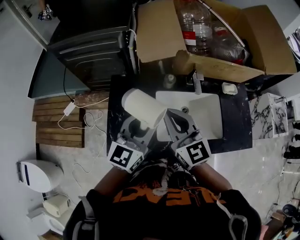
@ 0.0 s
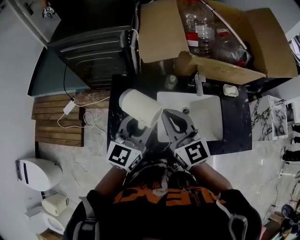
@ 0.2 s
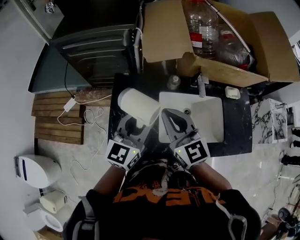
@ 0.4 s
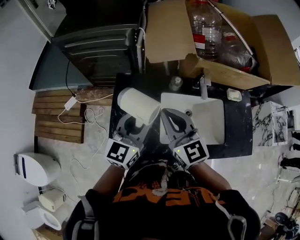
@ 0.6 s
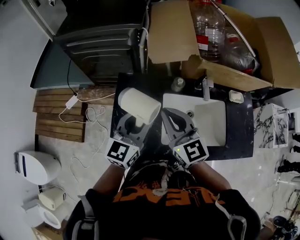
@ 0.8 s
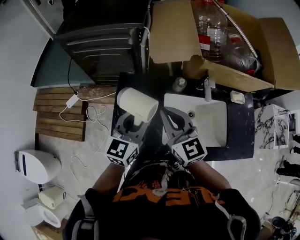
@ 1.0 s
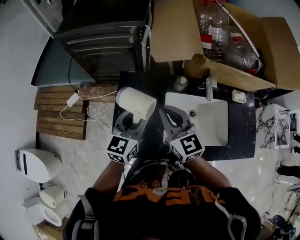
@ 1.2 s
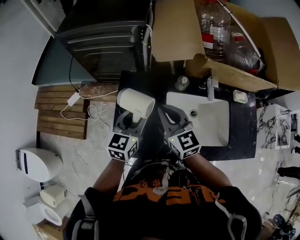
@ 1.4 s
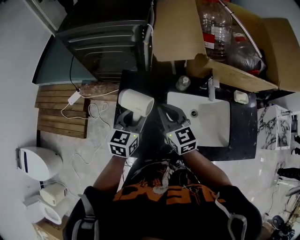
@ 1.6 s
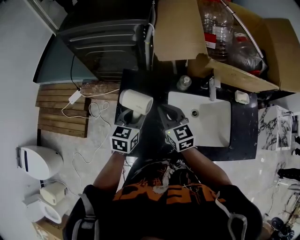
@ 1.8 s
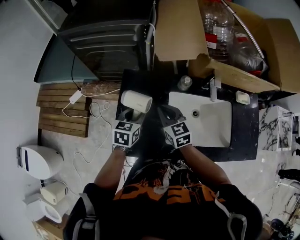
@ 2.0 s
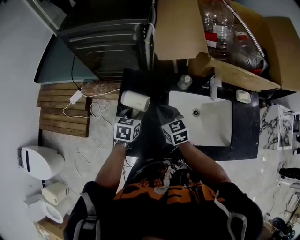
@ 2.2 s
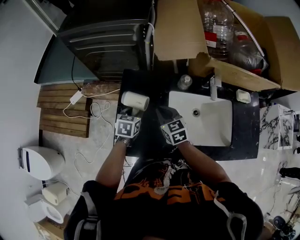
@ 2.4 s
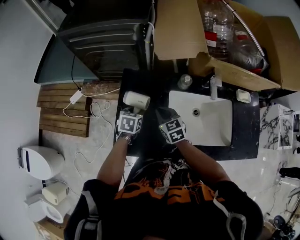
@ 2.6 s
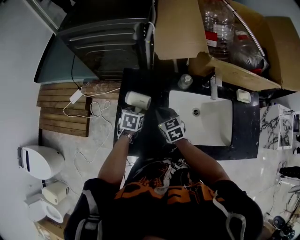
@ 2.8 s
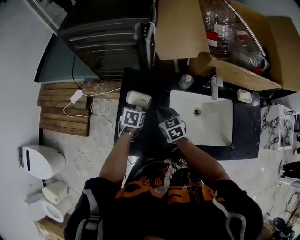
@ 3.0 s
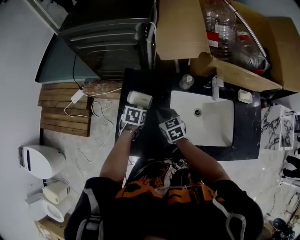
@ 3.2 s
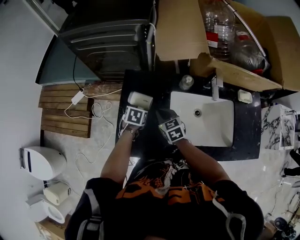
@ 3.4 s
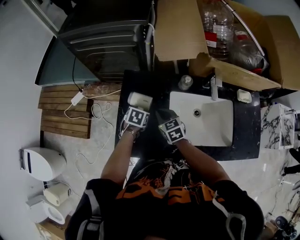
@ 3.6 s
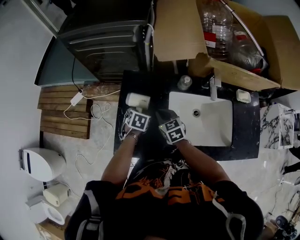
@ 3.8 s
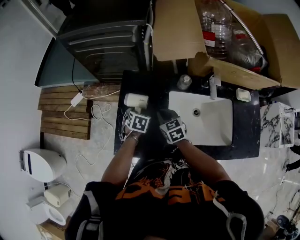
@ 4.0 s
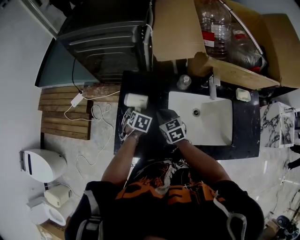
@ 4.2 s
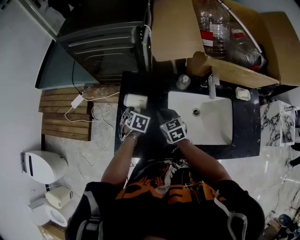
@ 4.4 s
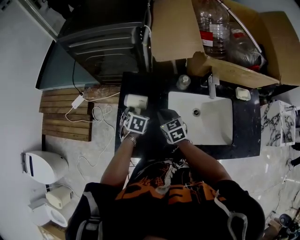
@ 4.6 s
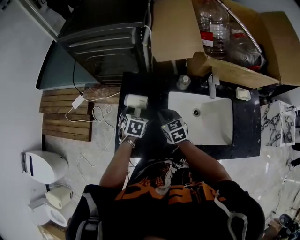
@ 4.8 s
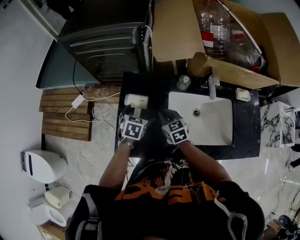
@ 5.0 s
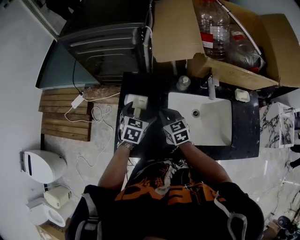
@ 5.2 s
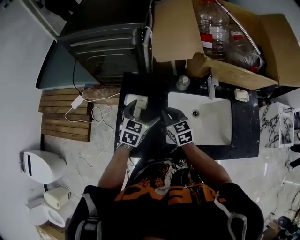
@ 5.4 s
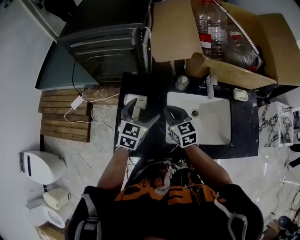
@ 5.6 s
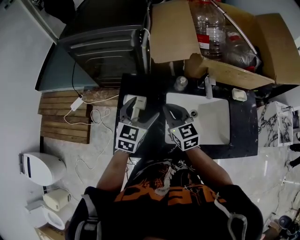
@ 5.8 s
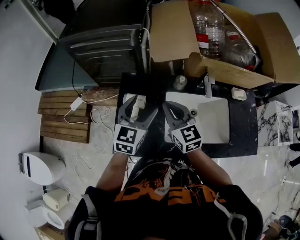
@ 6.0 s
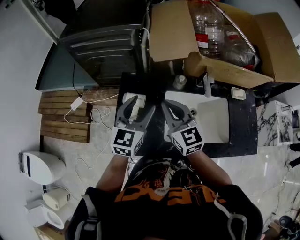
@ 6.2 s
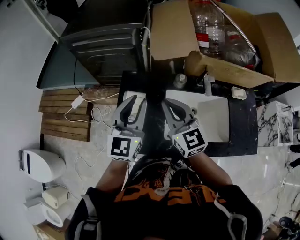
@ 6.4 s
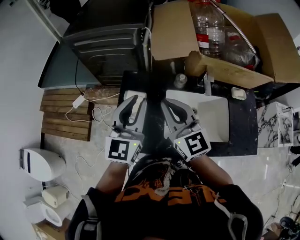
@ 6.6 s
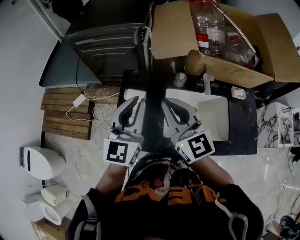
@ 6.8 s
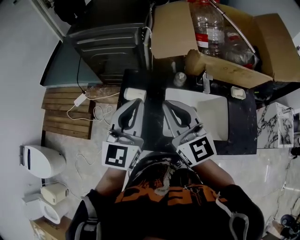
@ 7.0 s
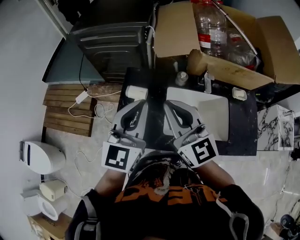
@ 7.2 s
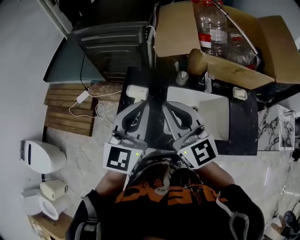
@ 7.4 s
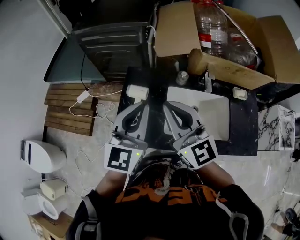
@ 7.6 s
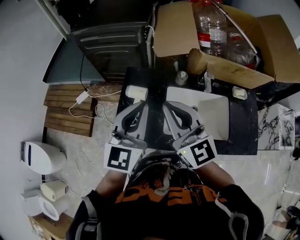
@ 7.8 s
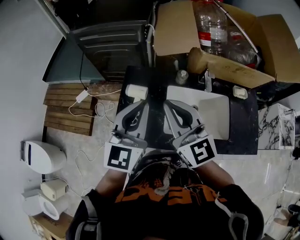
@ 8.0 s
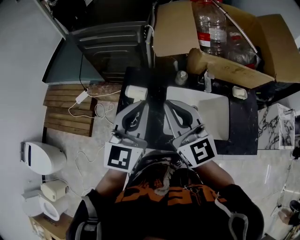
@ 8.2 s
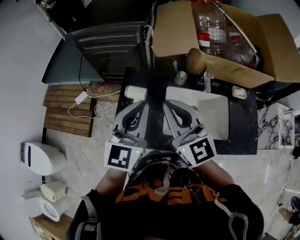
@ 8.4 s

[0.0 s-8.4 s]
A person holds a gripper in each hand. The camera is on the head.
0.0 to 1.4 s: Both grippers move downward, to the left and forward, about 10 cm.
1.4 to 2.8 s: Both grippers move downward, some 20 cm. The right gripper swivels roughly 20 degrees; the left gripper tilts its fingers about 40 degrees downward.
2.8 to 4.2 s: The left gripper opens up.
4.2 to 5.6 s: The left gripper heads upward, covering approximately 20 cm, and tilts its fingers about 40 degrees upward; the right gripper is displaced upward by some 10 cm.
5.6 to 7.0 s: Both grippers travel together upward and backward, some 25 cm. The left gripper rotates about 30 degrees, and closes its fingers. The right gripper rotates about 30 degrees.
7.0 to 8.4 s: The grippers make only small movements.

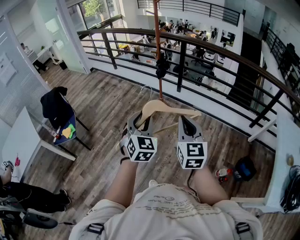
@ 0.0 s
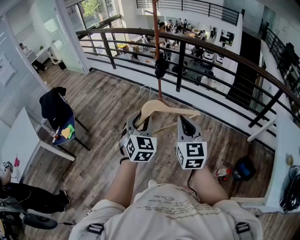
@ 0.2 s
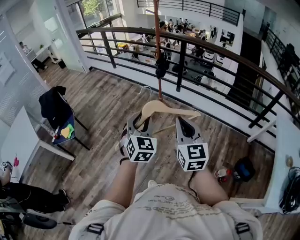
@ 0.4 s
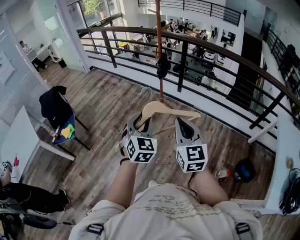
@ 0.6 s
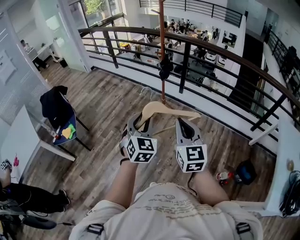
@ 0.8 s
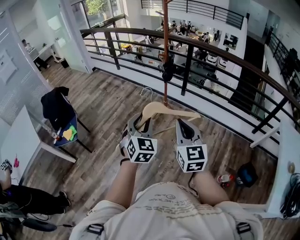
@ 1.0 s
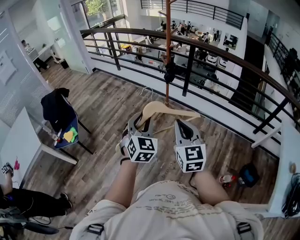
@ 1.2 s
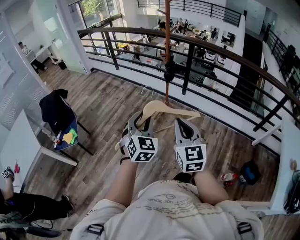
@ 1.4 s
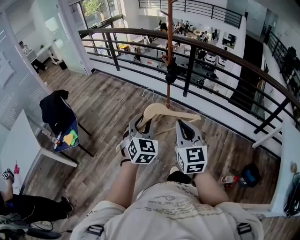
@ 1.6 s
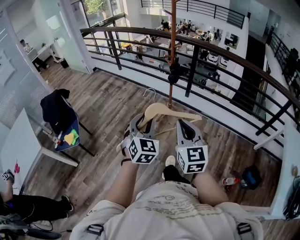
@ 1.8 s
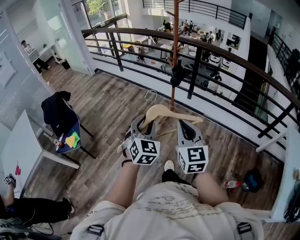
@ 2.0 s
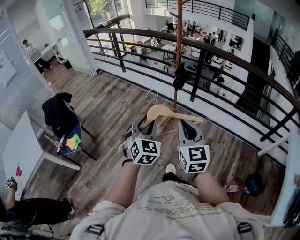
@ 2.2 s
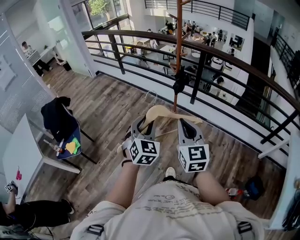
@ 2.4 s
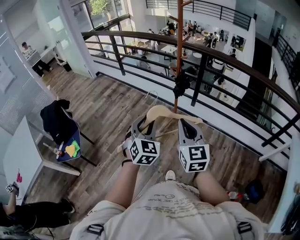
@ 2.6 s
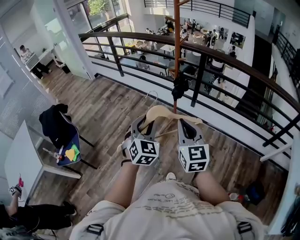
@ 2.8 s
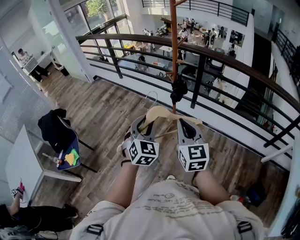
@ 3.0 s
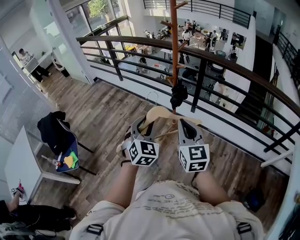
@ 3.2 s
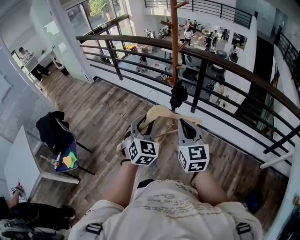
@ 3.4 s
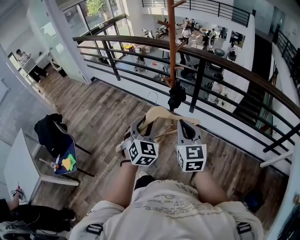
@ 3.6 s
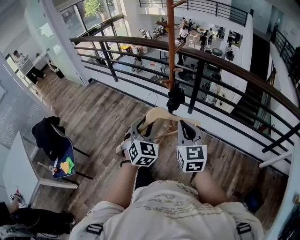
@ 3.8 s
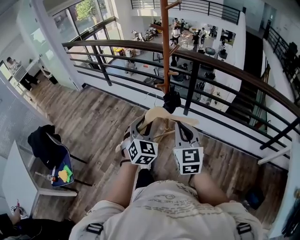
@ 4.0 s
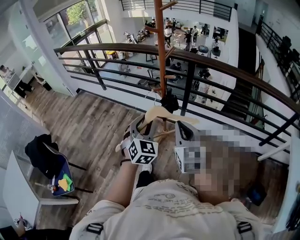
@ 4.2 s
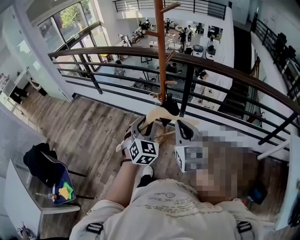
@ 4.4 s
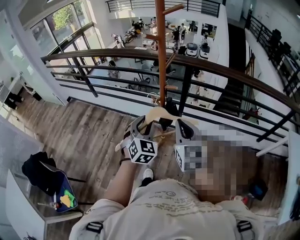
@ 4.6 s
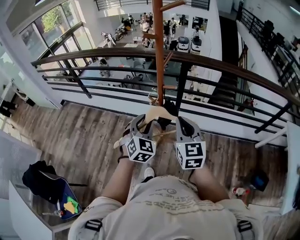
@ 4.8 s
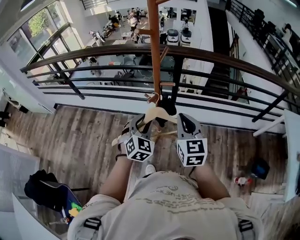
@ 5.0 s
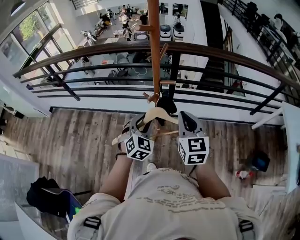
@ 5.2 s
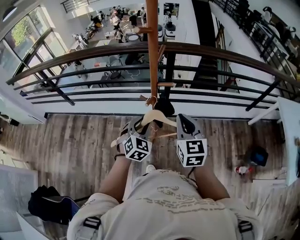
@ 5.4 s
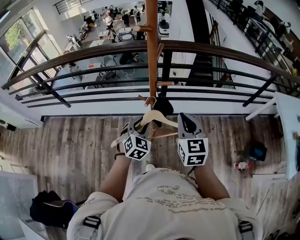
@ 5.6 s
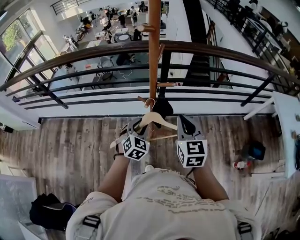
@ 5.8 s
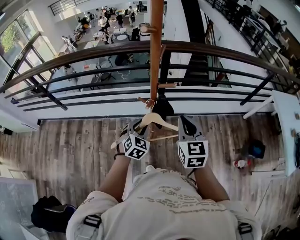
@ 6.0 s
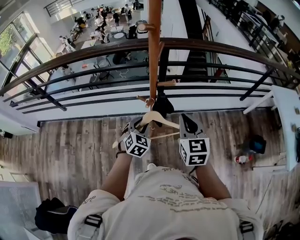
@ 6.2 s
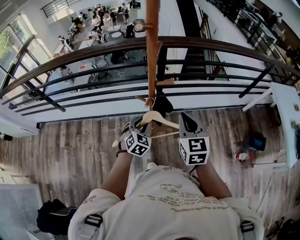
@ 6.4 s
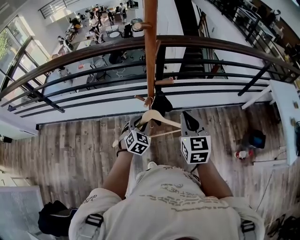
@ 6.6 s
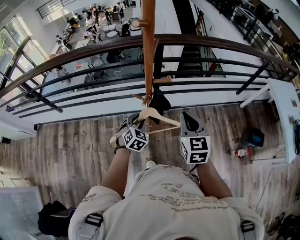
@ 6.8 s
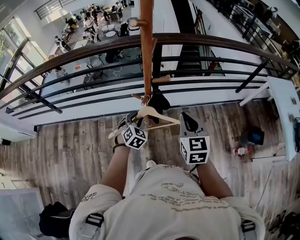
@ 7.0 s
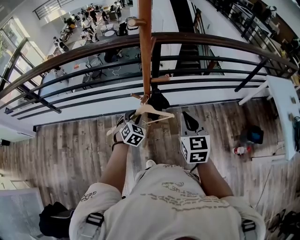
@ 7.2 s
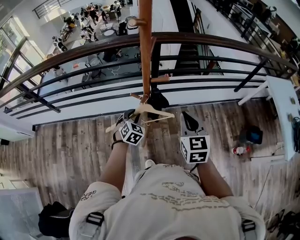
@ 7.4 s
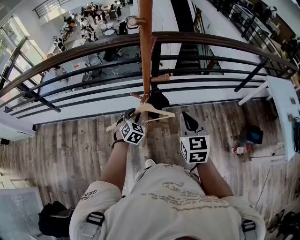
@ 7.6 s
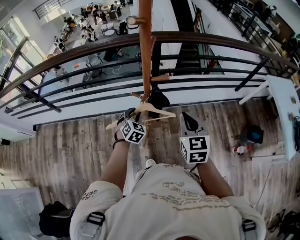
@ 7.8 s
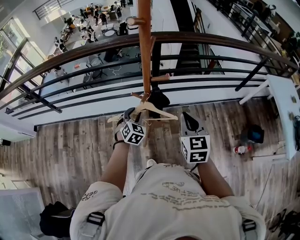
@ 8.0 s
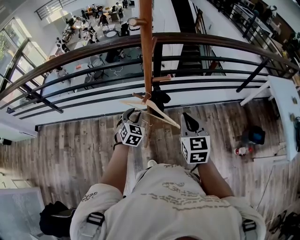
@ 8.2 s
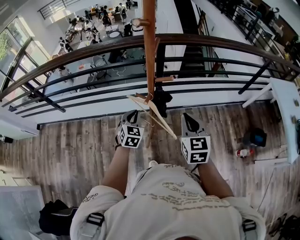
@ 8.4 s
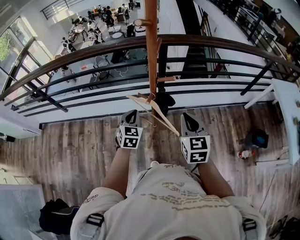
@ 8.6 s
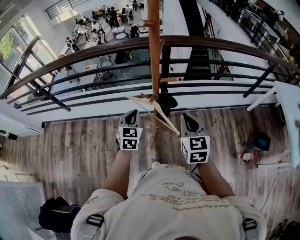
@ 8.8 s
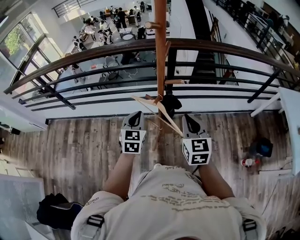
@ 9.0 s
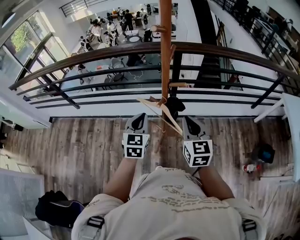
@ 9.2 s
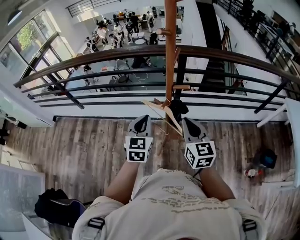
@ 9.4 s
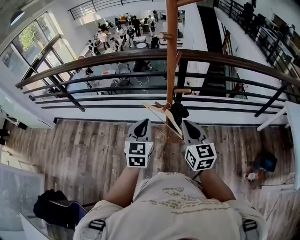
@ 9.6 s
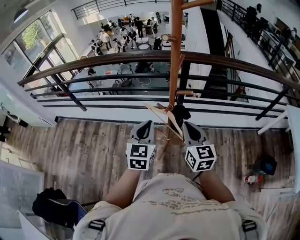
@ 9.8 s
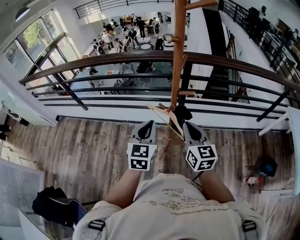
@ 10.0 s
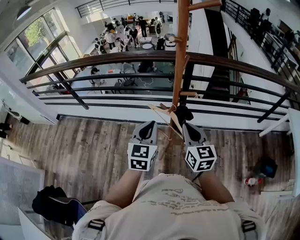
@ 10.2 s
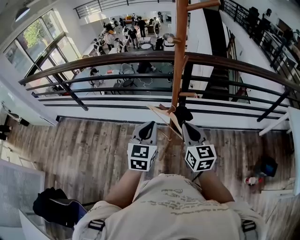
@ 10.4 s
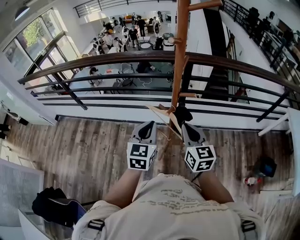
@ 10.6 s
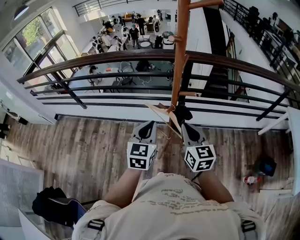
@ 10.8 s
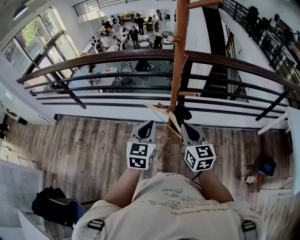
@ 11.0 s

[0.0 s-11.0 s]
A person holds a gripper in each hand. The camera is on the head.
0.0 to 1.6 s: The two grippers go some 15 cm to the left and forward.
1.6 to 3.2 s: Both grippers travel together forward, roughly 30 cm.
3.2 to 4.8 s: Both grippers move forward, approximately 25 cm. The left gripper swivels about 20 degrees, while the right gripper turns by roughly 20 degrees.
4.8 to 6.2 s: The left gripper moves downward and forward, about 15 cm, and turns by approximately 30 degrees. The right gripper is displaced downward and forward by some 10 cm, and changes its angle by roughly 20 degrees.
6.2 to 7.8 s: The left gripper is displaced forward by approximately 5 cm.
7.8 to 9.4 s: The right gripper heads to the left, covering roughly 5 cm, and changes its angle by some 20 degrees; the left gripper is displaced upward and backward by roughly 20 cm, rotates about 30 degrees, and closes up.
9.4 to 11.0 s: There are only small adjustments of the grippers.

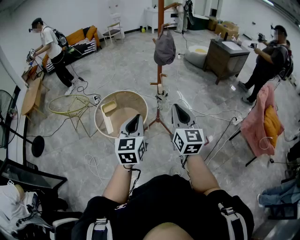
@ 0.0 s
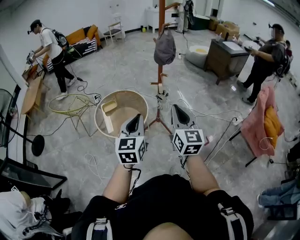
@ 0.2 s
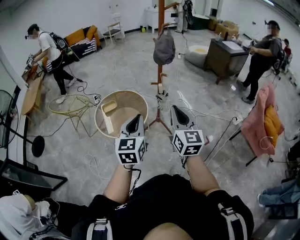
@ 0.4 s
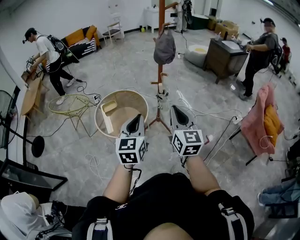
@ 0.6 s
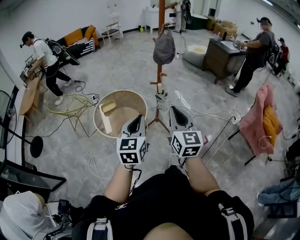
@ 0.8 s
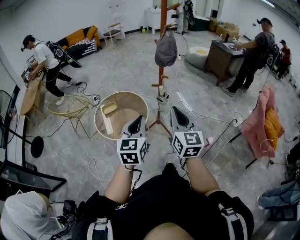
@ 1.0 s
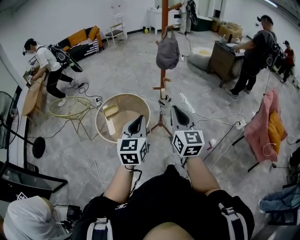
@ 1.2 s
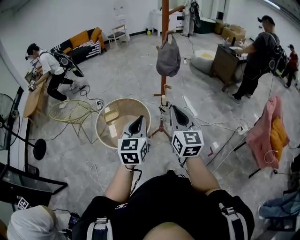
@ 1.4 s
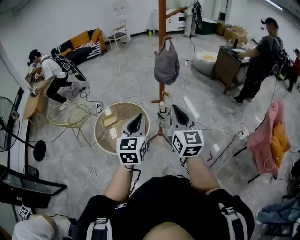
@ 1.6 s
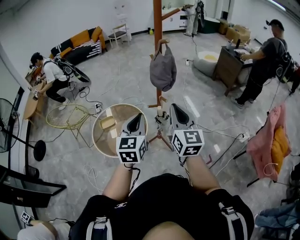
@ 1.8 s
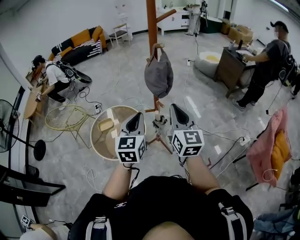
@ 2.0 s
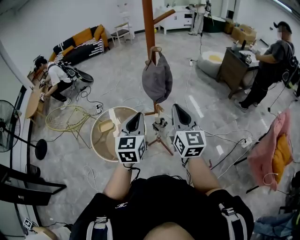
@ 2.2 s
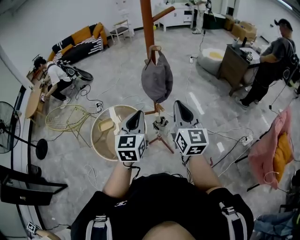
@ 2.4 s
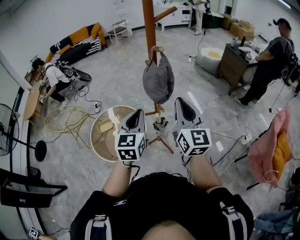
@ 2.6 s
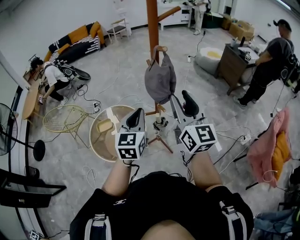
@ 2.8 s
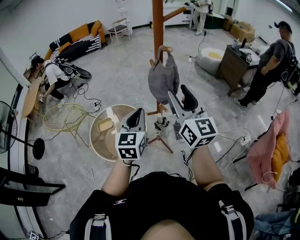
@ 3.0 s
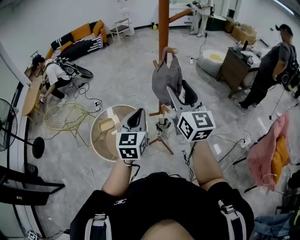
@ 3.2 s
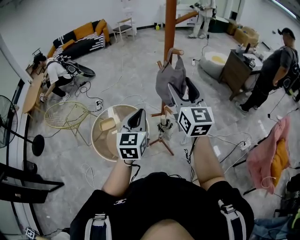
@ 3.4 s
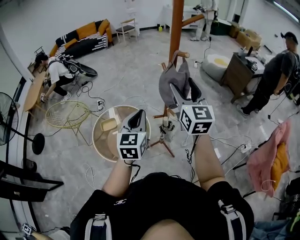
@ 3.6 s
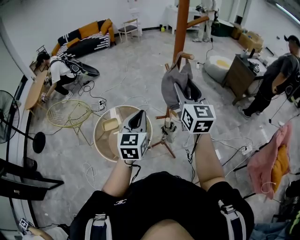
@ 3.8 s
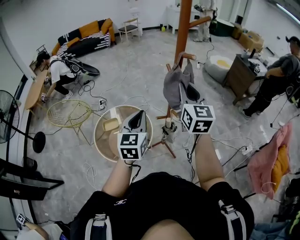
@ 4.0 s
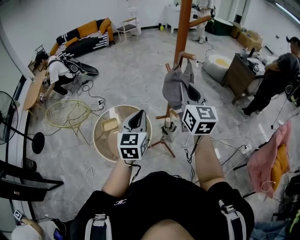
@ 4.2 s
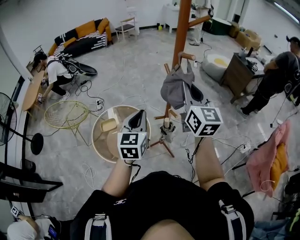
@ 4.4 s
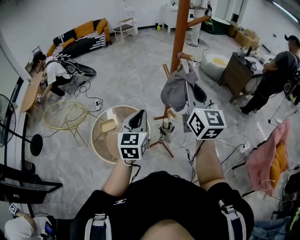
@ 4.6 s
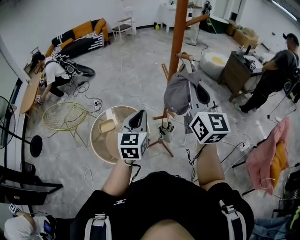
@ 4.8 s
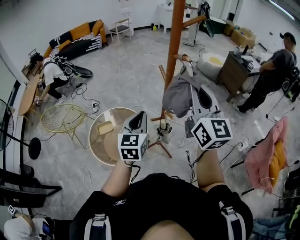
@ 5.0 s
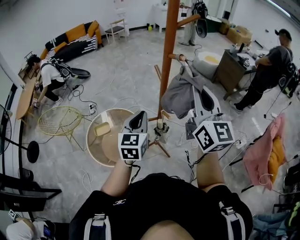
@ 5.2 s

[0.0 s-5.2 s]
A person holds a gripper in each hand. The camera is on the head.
0.0 to 1.8 s: Both grippers move forward, about 30 cm.
1.8 to 3.4 s: The left gripper goes some 15 cm forward; the right gripper moves forward and upward, approximately 20 cm, and opens.
3.4 to 5.2 s: The right gripper ends up some 5 cm from where it was, and closes up.
